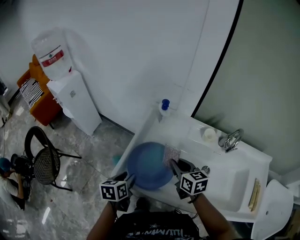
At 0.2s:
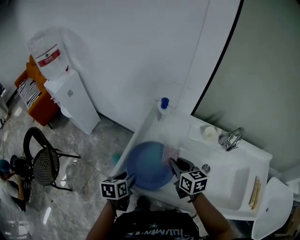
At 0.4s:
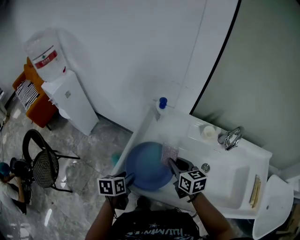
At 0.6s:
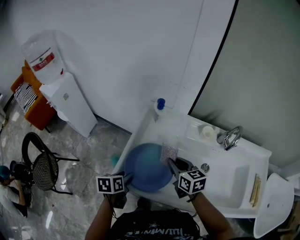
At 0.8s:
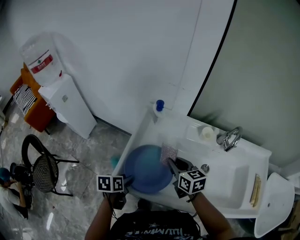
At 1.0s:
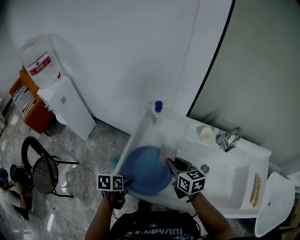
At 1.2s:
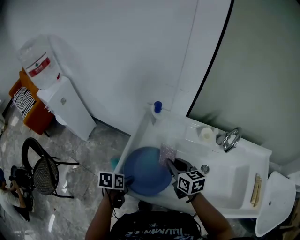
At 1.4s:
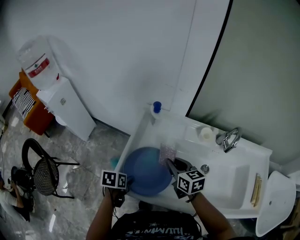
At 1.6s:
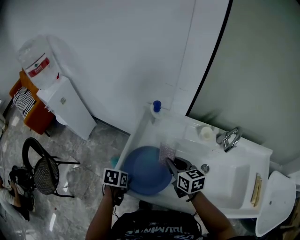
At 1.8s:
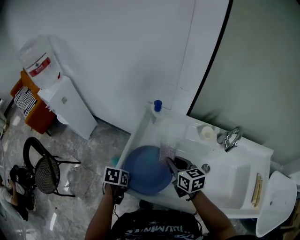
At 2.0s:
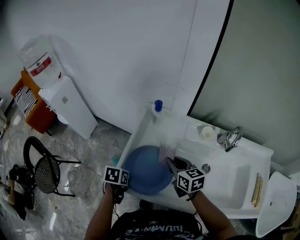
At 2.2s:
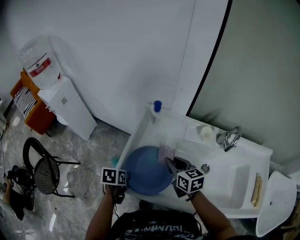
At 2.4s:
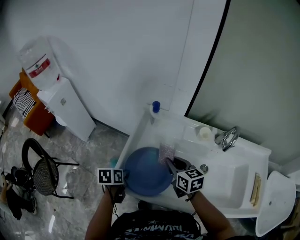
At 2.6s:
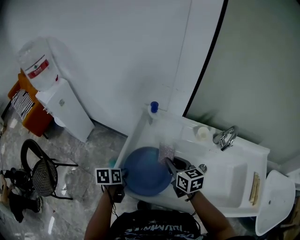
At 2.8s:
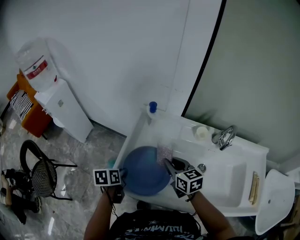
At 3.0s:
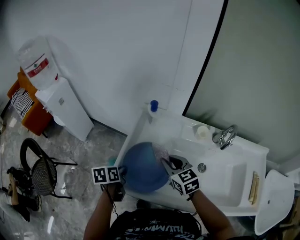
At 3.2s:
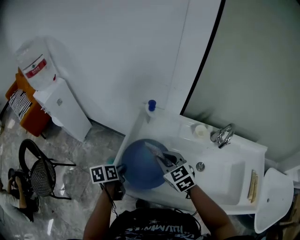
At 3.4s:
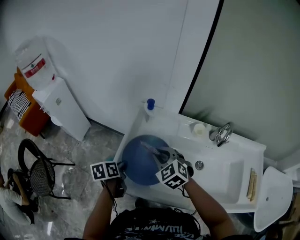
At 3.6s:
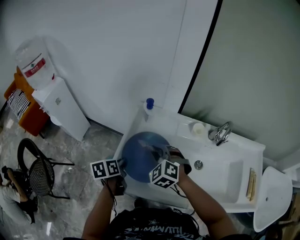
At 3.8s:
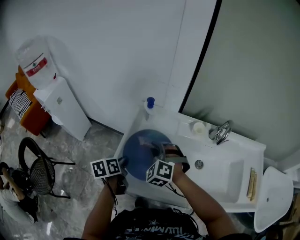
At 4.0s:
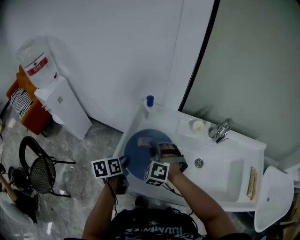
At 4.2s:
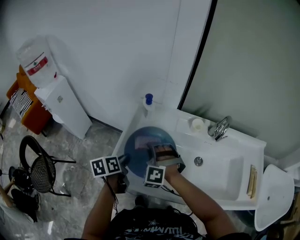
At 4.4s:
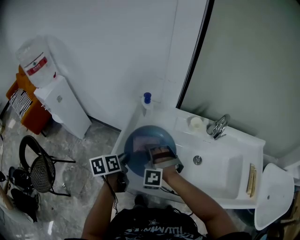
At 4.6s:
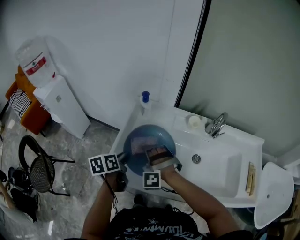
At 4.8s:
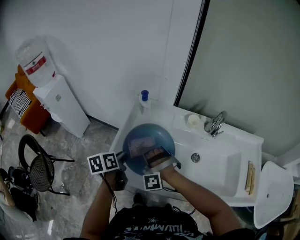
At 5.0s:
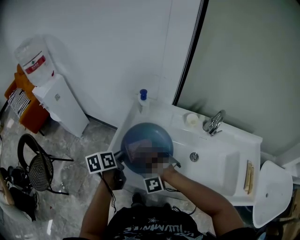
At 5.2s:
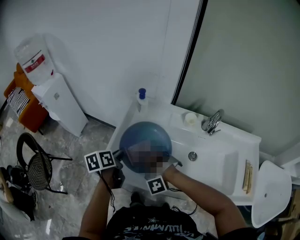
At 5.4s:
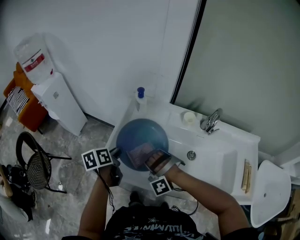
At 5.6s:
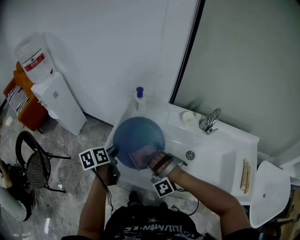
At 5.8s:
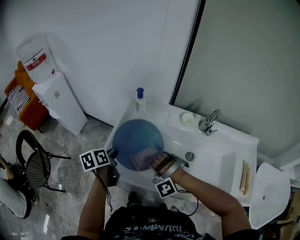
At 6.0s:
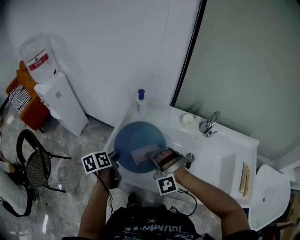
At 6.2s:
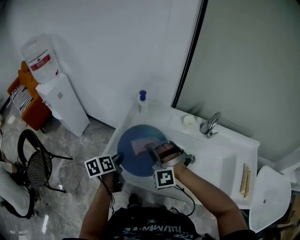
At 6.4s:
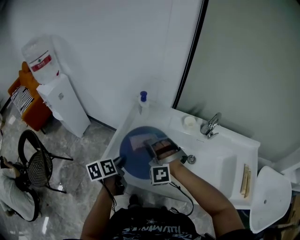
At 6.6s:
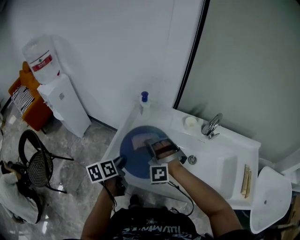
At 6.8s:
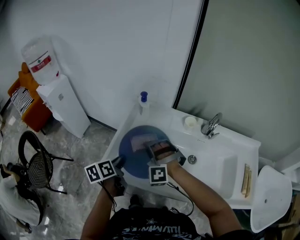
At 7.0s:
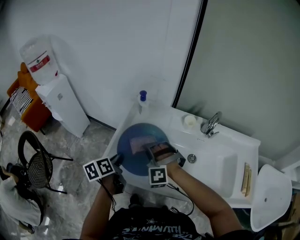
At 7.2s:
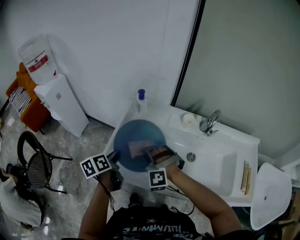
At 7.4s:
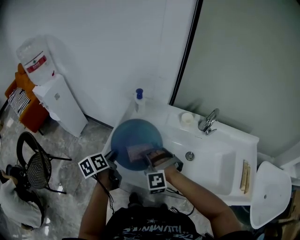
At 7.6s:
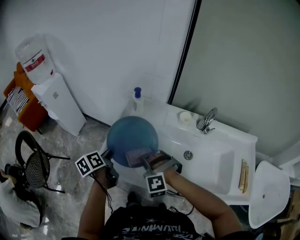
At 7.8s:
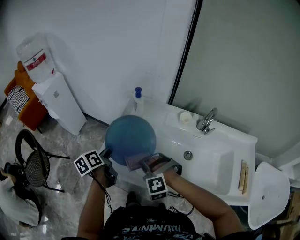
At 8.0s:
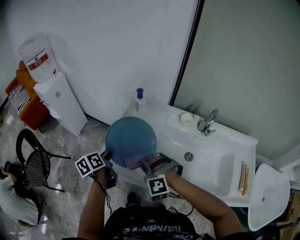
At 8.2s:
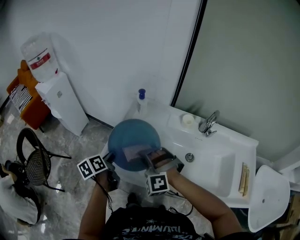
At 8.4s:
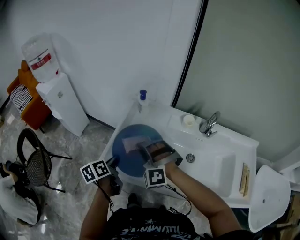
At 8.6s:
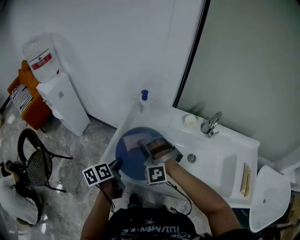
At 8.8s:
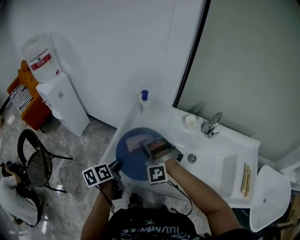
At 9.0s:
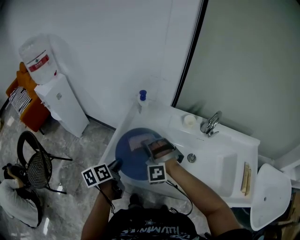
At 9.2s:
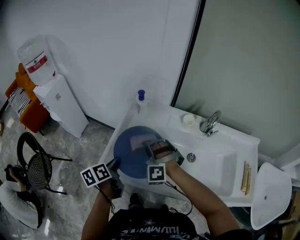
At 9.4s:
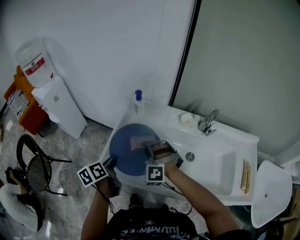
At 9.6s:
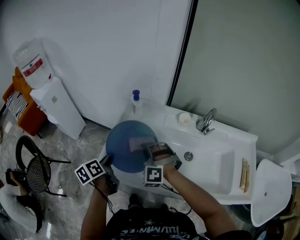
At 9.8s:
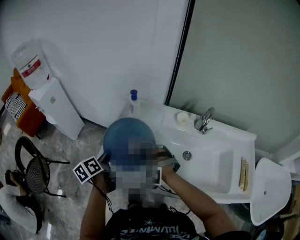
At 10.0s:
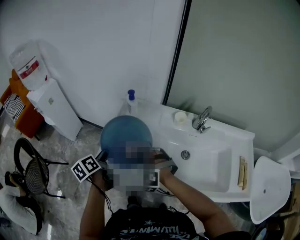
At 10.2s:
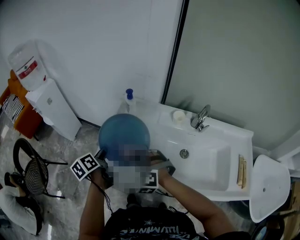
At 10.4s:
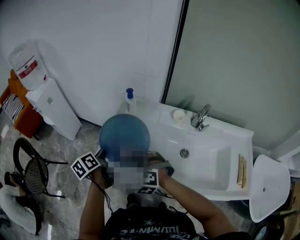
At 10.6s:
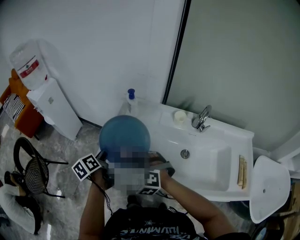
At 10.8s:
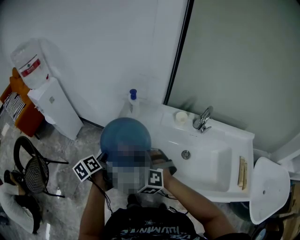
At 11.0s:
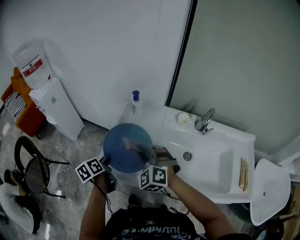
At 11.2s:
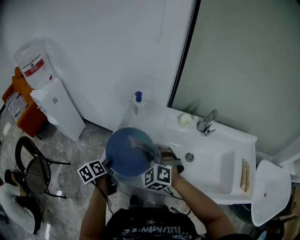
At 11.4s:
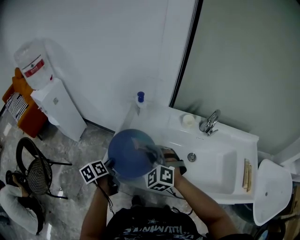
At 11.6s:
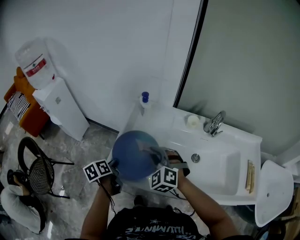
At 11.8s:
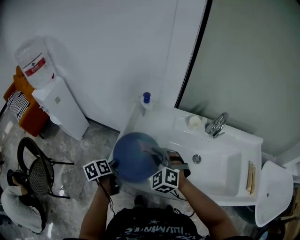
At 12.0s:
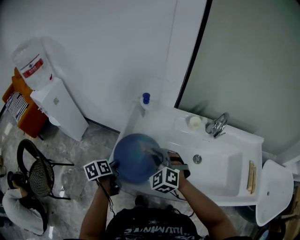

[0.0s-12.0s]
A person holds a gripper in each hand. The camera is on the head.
0.0s to 1.6s: The left gripper is displaced downward by approximately 5 cm, and turns by some 30 degrees.
1.6s to 3.0s: The left gripper shifts by approximately 5 cm, changes its angle by some 20 degrees, and closes up.
3.0s to 4.4s: The right gripper travels to the left by approximately 5 cm, and twists some 80 degrees counterclockwise, seen from behind, while the left gripper shifts approximately 5 cm upward.
4.4s to 6.0s: The right gripper shifts approximately 10 cm backward and to the right, and changes its angle by some 20 degrees.
7.6s to 9.0s: The right gripper travels forward by roughly 5 cm.
9.0s to 10.4s: The right gripper goes approximately 5 cm backward, and swivels some 30 degrees. Meanwhile the left gripper ends up about 5 cm from where it was.
10.4s to 12.0s: The right gripper is displaced forward by roughly 5 cm; the left gripper is displaced downward by approximately 10 cm.

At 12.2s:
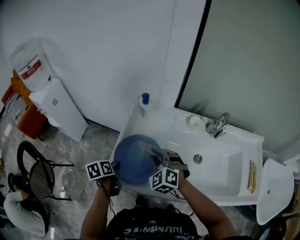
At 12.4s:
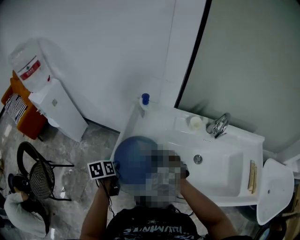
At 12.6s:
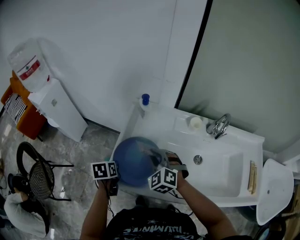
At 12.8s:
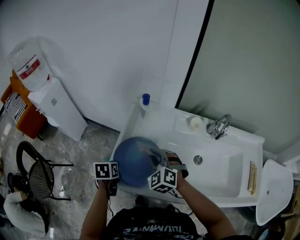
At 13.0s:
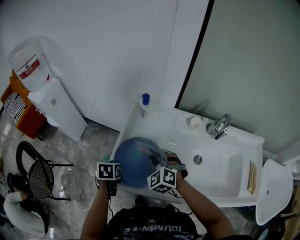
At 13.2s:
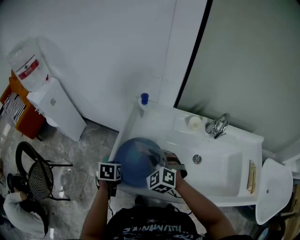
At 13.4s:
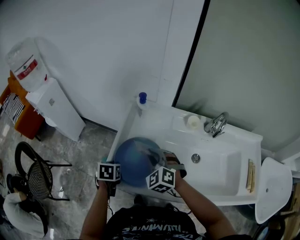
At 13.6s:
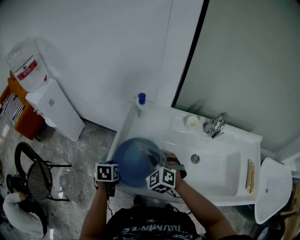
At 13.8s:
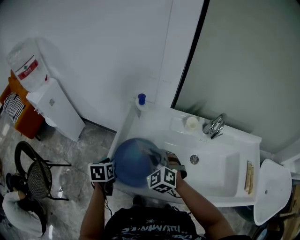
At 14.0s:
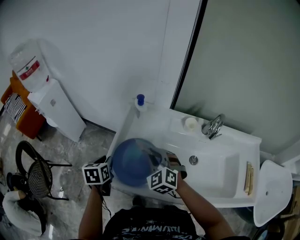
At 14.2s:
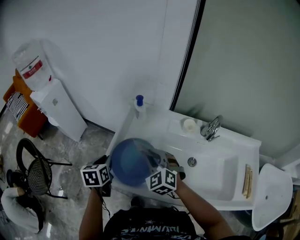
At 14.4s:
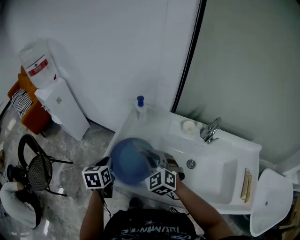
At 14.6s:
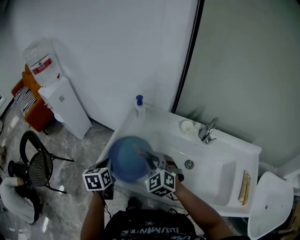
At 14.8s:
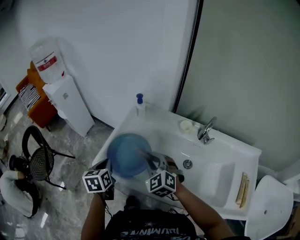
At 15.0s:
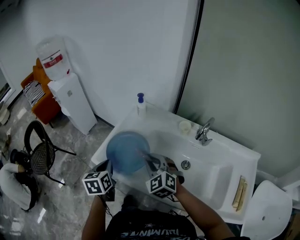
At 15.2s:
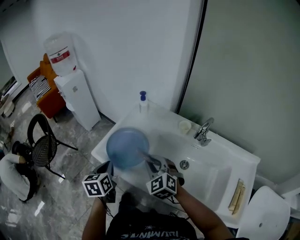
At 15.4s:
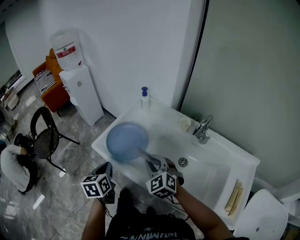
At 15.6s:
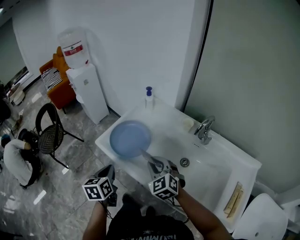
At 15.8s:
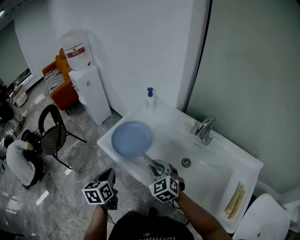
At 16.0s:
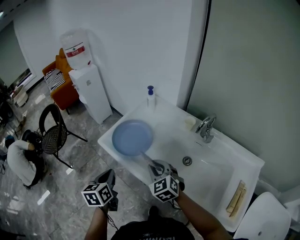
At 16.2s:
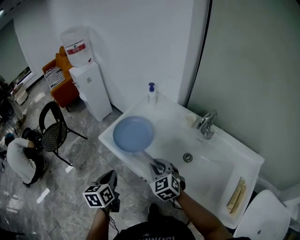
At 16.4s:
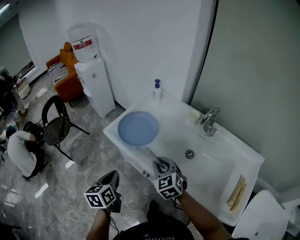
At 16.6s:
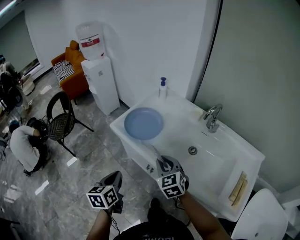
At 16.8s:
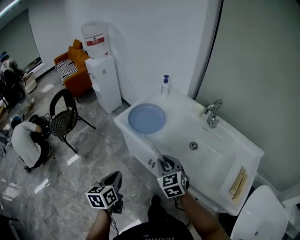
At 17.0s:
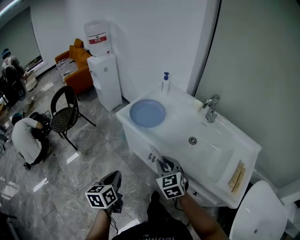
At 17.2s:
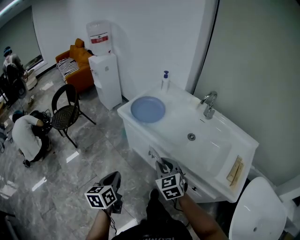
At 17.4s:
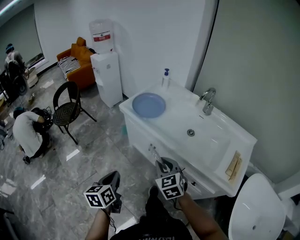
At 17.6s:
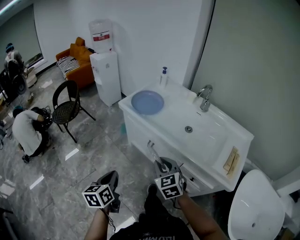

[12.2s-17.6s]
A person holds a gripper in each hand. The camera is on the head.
12.2s to 13.6s: The left gripper changes its angle by approximately 30 degrees.
13.6s to 15.0s: The right gripper goes approximately 10 cm backward and to the right; the left gripper travels backward, upward and to the right by roughly 15 cm, and swivels some 30 degrees.
15.0s to 16.2s: The right gripper is displaced backward by approximately 10 cm, while the left gripper moves backward, some 15 cm.
16.2s to 17.6s: Both grippers travel together backward, some 30 cm.

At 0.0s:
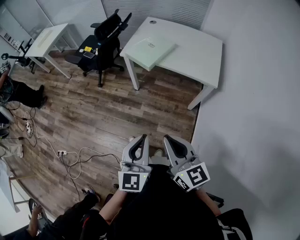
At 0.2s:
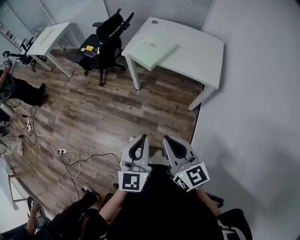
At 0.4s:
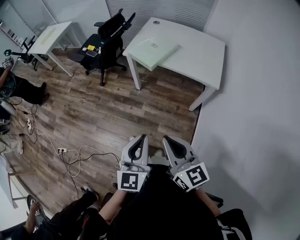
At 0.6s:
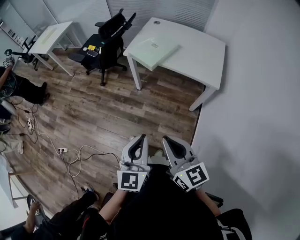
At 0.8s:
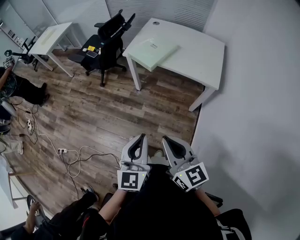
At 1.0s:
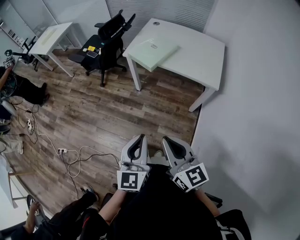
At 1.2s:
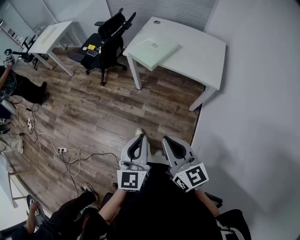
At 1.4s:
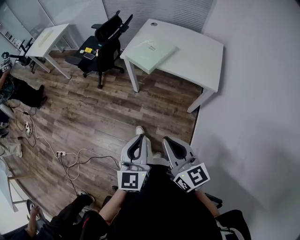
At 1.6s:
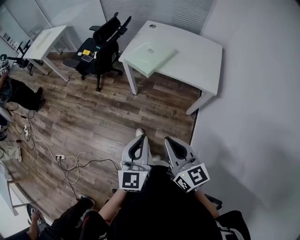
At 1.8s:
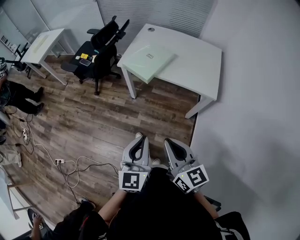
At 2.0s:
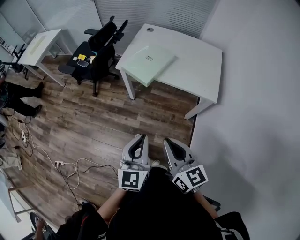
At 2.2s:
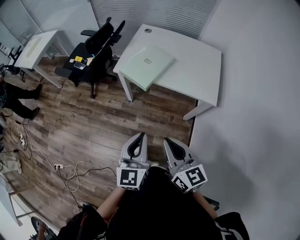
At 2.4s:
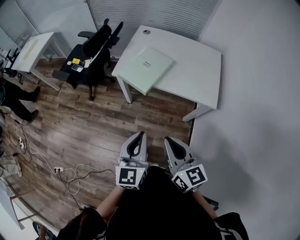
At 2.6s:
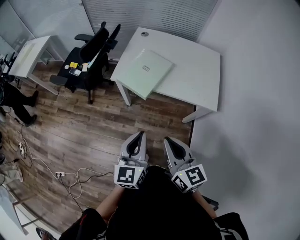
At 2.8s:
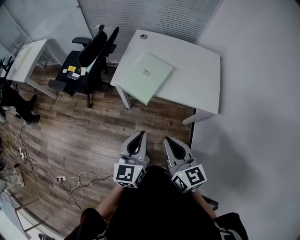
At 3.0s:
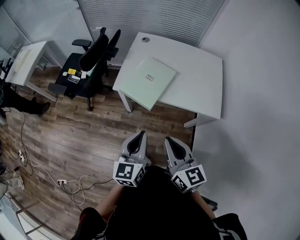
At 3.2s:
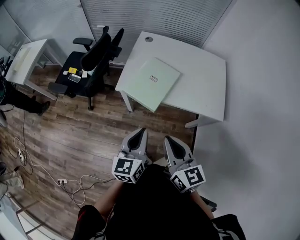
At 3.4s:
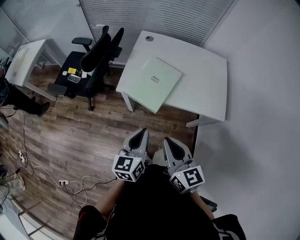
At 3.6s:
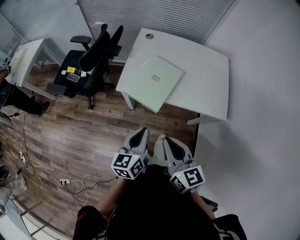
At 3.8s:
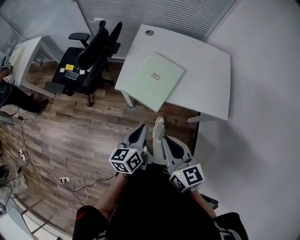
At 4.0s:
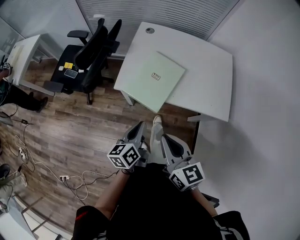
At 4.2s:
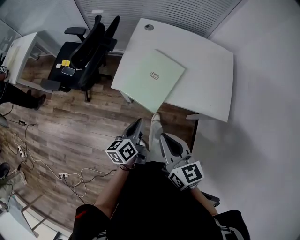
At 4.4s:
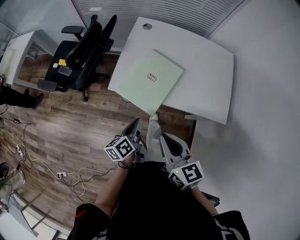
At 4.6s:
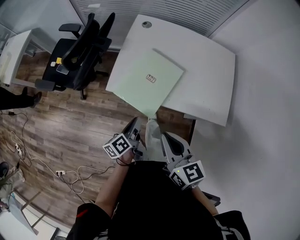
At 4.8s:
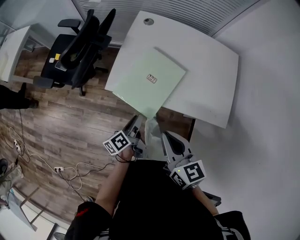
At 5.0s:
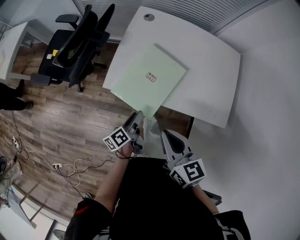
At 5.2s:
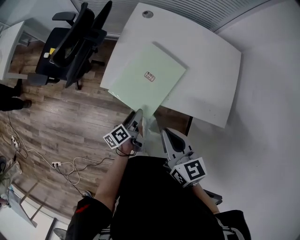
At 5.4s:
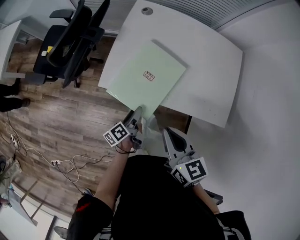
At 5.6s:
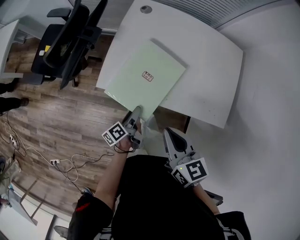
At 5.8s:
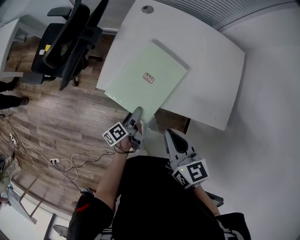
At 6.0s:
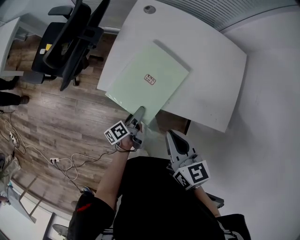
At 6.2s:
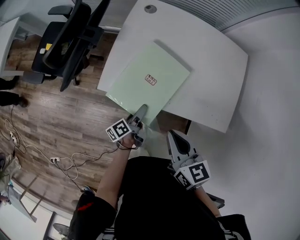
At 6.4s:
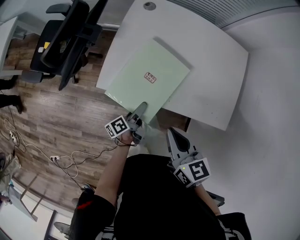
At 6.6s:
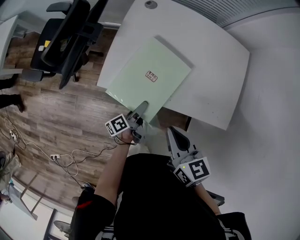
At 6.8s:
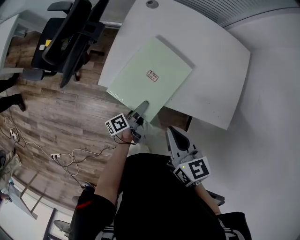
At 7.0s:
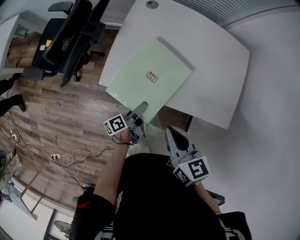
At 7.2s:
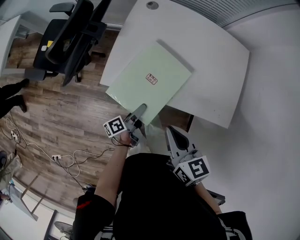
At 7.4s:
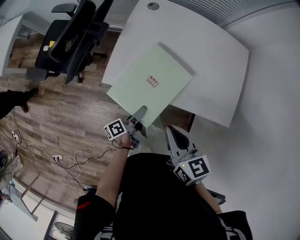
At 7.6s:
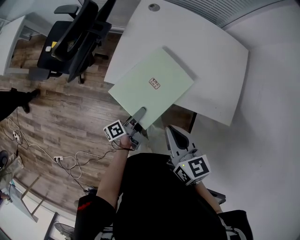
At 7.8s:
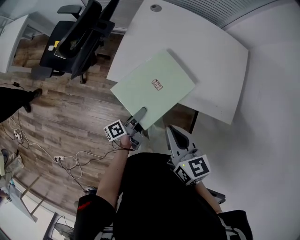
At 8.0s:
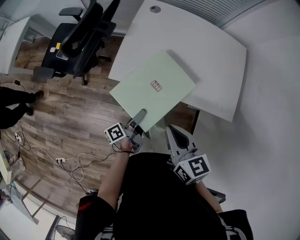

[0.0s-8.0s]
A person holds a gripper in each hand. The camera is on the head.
0.0s to 1.6s: The left gripper shifts by about 5 cm.
1.6s to 3.2s: The two grippers go approximately 30 cm forward.
3.2s to 4.8s: The right gripper is displaced forward and downward by about 15 cm. The left gripper moves downward and forward, roughly 25 cm, rolls counterclockwise, seen from behind, by about 60 degrees, and opens.
4.8s to 6.4s: The right gripper goes approximately 5 cm forward; the left gripper shifts roughly 10 cm downward and forward, and opens up.
6.4s to 8.0s: The right gripper heads backward, covering roughly 5 cm. Meanwhile the left gripper is displaced backward and upward by about 10 cm.
